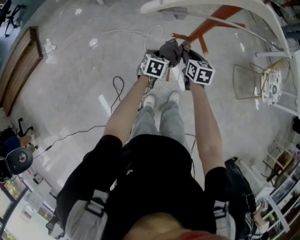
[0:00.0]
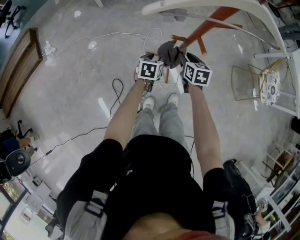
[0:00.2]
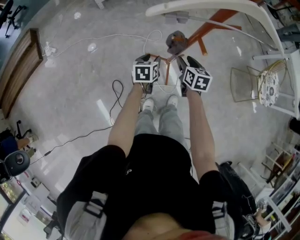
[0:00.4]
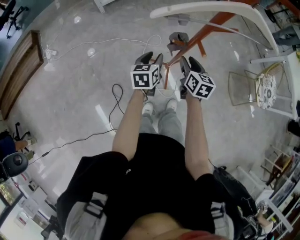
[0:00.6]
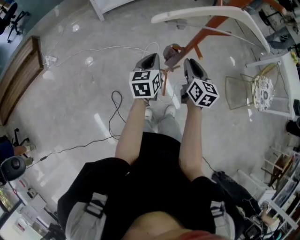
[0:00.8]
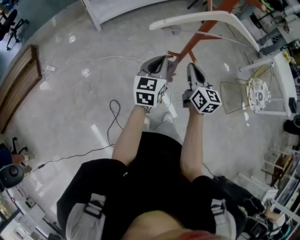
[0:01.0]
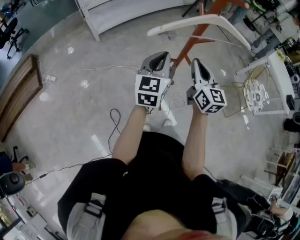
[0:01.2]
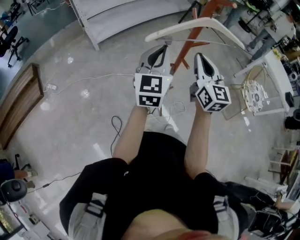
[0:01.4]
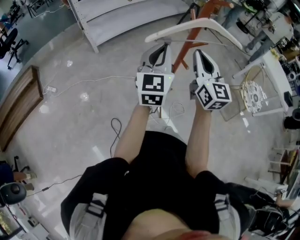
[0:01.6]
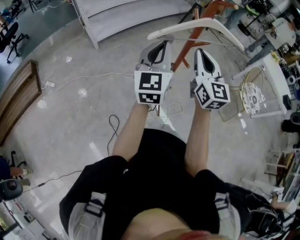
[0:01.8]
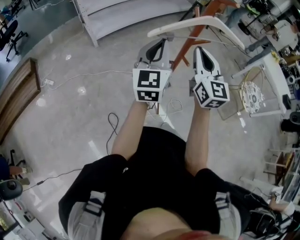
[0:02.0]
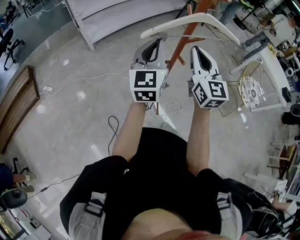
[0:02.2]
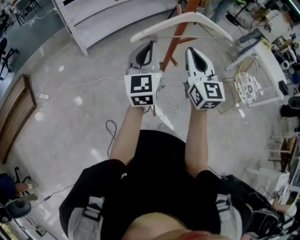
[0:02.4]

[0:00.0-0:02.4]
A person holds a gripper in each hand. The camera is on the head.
0:00.0 to 0:01.2: Both grippers move upward, approximately 30 cm. The left gripper tips its fingers upward by some 50 degrees, and closes up. Meanwhile the right gripper tilts its fingers some 40 degrees upward, and opens and closes again.
0:01.2 to 0:02.4: The grippers both shift upward by approximately 10 cm.

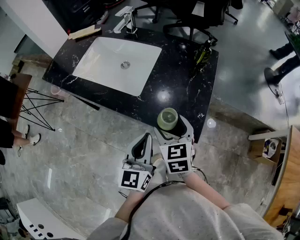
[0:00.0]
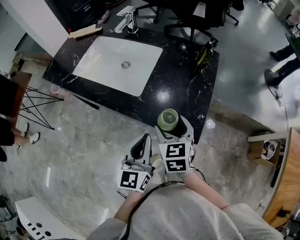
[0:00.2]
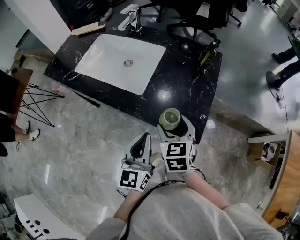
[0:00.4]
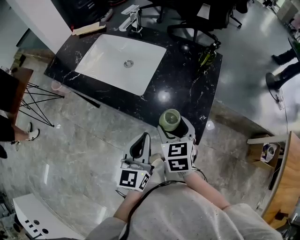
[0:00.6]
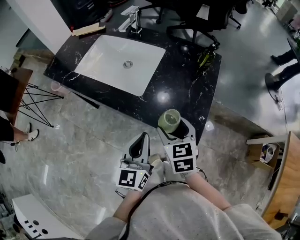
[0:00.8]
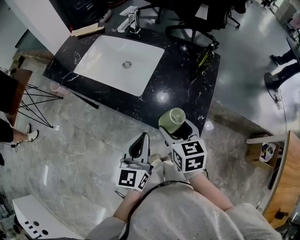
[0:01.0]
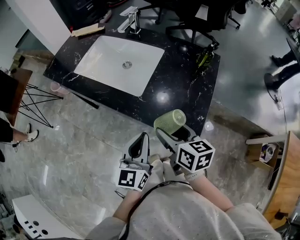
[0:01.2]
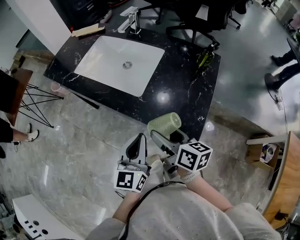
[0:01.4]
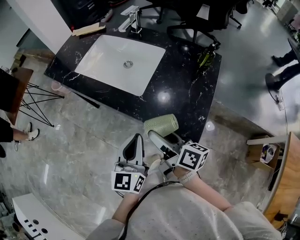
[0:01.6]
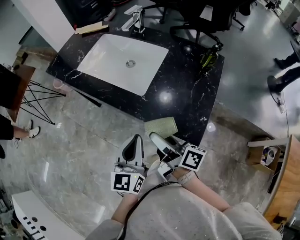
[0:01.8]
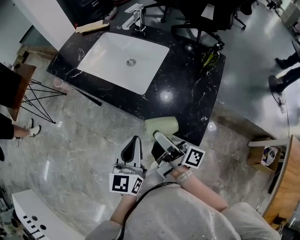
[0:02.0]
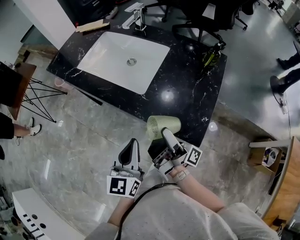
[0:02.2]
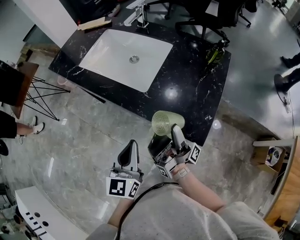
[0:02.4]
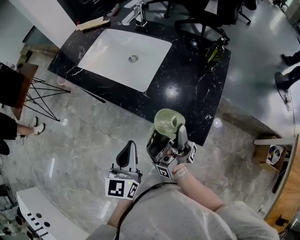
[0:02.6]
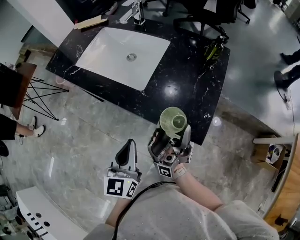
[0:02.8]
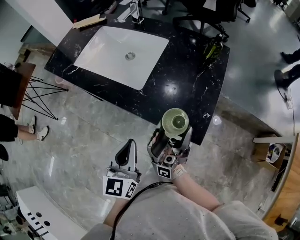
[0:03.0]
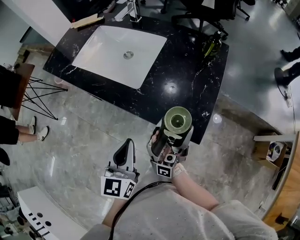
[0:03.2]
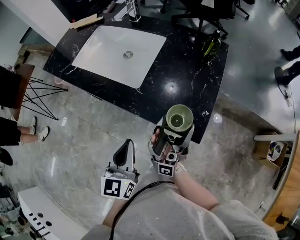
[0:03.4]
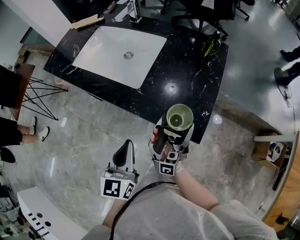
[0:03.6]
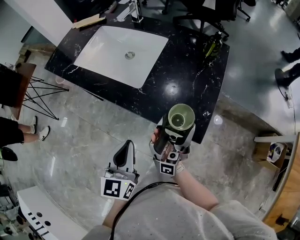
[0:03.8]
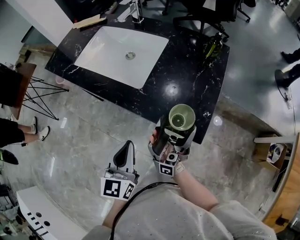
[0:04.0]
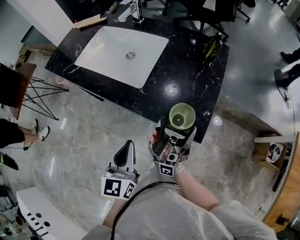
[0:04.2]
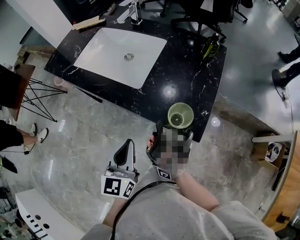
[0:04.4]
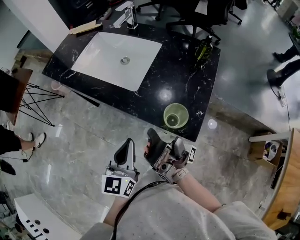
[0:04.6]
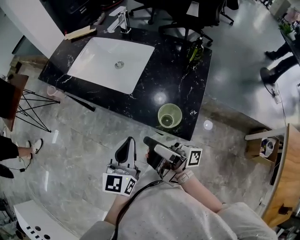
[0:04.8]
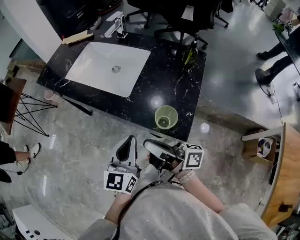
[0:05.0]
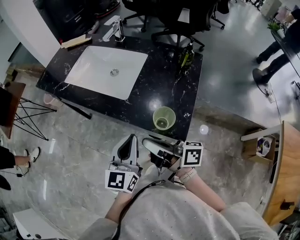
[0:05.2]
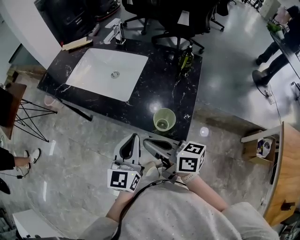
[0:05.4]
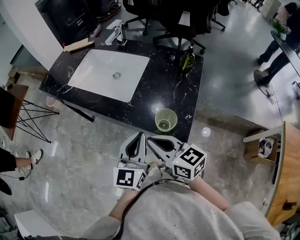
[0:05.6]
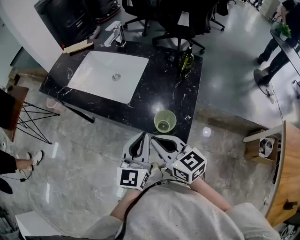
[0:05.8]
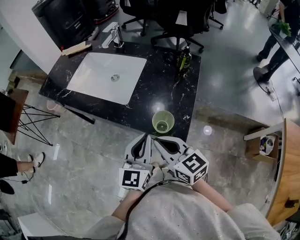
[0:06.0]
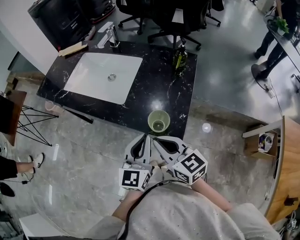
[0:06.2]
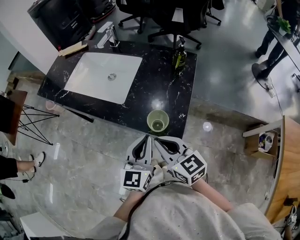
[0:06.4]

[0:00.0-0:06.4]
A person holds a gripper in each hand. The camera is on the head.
0:04.8 to 0:06.4: The left gripper shifts by approximately 10 cm.

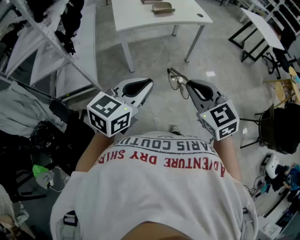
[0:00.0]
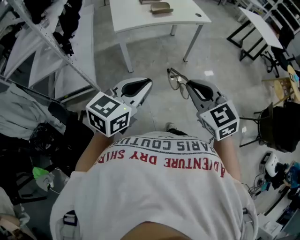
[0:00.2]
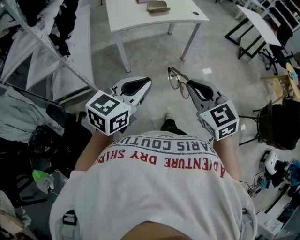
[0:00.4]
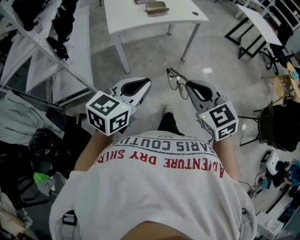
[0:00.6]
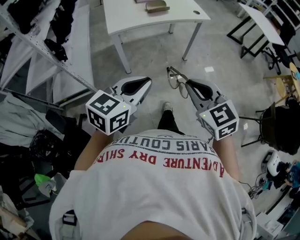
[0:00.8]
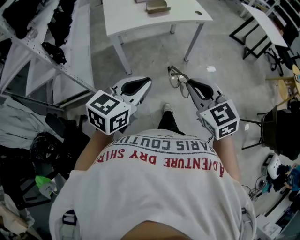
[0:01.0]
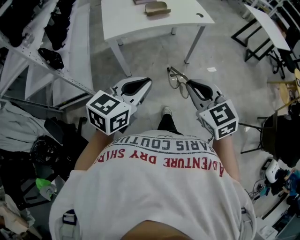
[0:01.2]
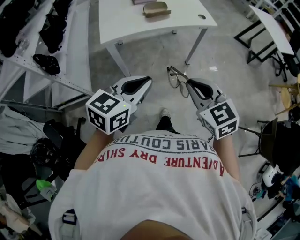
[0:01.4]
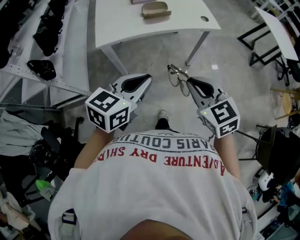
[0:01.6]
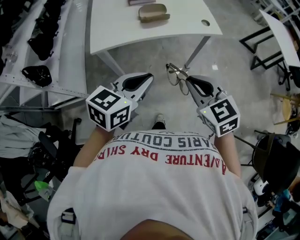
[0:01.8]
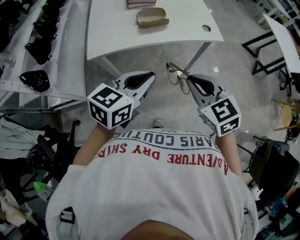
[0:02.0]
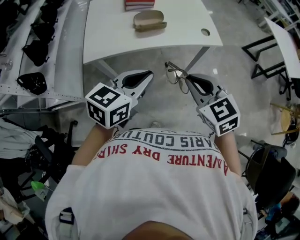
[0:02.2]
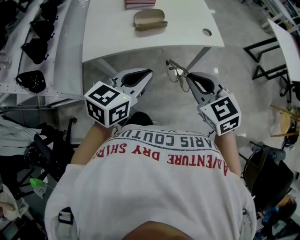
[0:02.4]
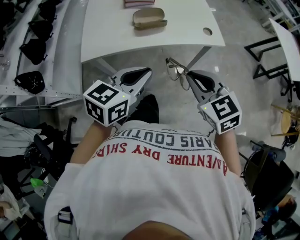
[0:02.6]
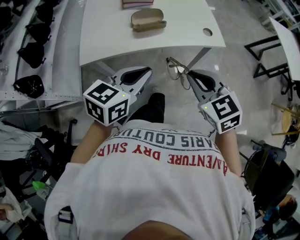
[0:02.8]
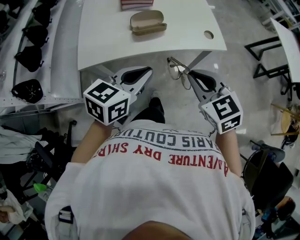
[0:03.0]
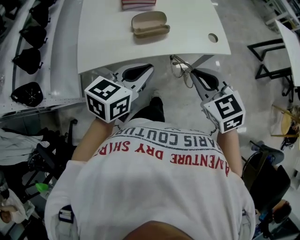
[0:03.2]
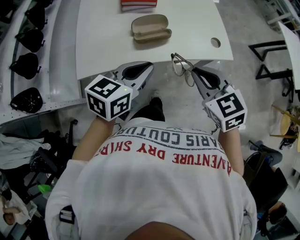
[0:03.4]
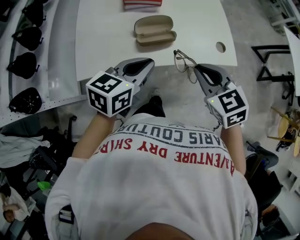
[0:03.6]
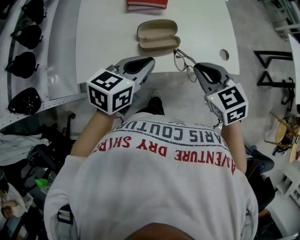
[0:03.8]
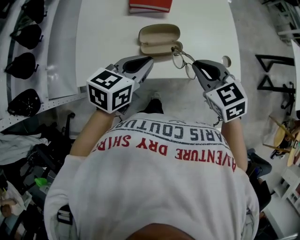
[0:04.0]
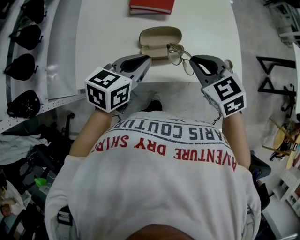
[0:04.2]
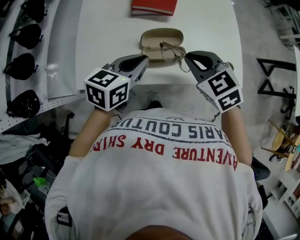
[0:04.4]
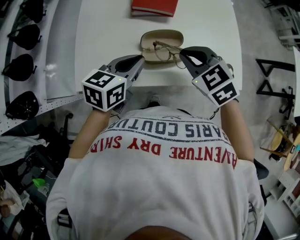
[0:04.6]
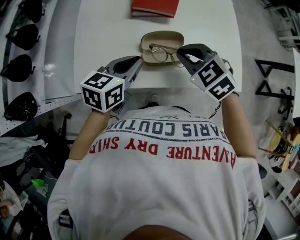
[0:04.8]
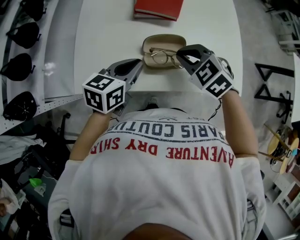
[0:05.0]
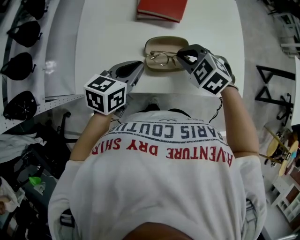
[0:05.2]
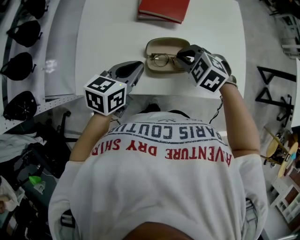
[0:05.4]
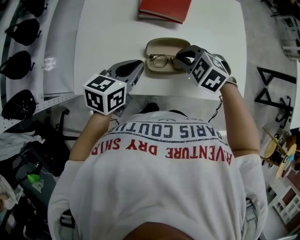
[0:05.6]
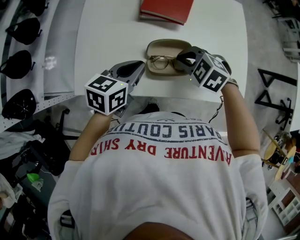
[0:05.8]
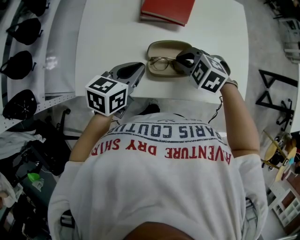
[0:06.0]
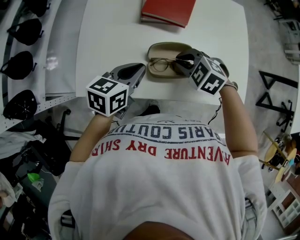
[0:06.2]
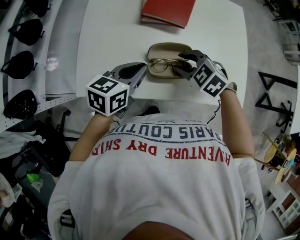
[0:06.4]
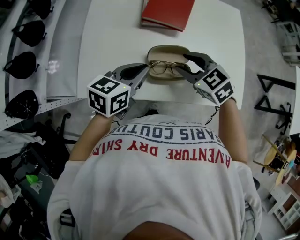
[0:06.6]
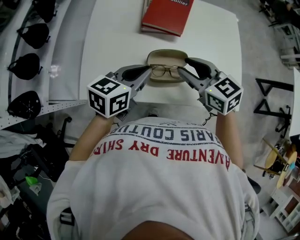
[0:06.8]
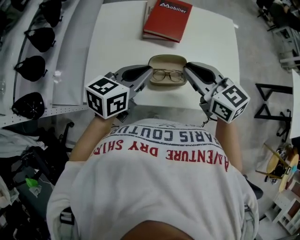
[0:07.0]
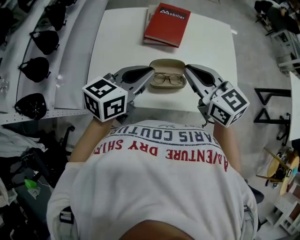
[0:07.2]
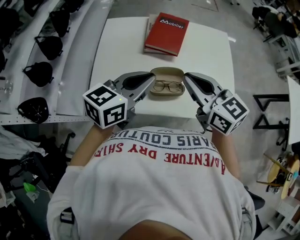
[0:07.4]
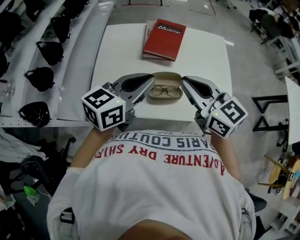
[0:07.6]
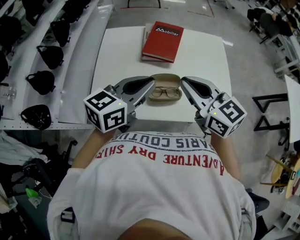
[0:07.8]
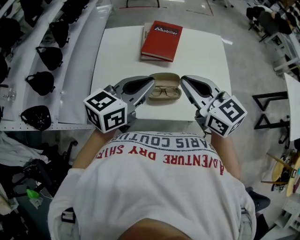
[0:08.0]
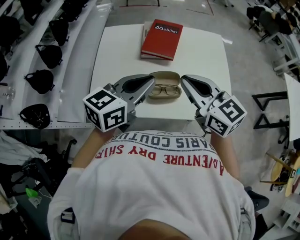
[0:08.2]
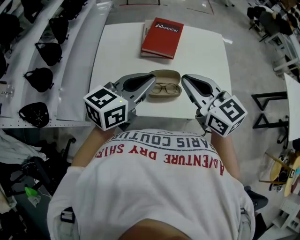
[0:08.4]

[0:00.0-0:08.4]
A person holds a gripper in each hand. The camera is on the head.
0:00.0 to 0:01.4: Both grippers travel together forward, roughly 20 cm.
0:01.4 to 0:02.8: Both grippers move forward, approximately 25 cm.
0:02.8 to 0:04.2: The two grippers go approximately 25 cm forward.
0:04.2 to 0:05.6: The right gripper heads downward, forward and to the left, covering about 15 cm, and rotates about 40 degrees. Meanwhile the left gripper shifts by some 10 cm.
0:05.6 to 0:07.0: The right gripper moves upward, approximately 15 cm, points its fingers roughly 40 degrees further upward, and opens, then closes again, while the left gripper heads upward, covering roughly 10 cm.
0:07.0 to 0:08.4: The two grippers go roughly 10 cm upward.

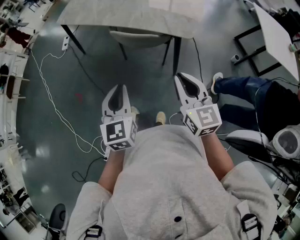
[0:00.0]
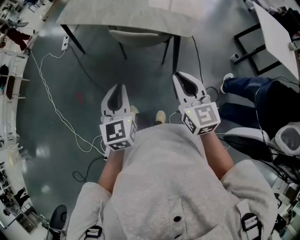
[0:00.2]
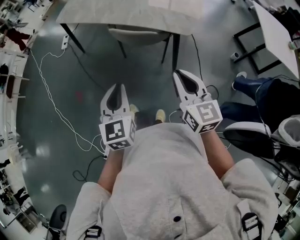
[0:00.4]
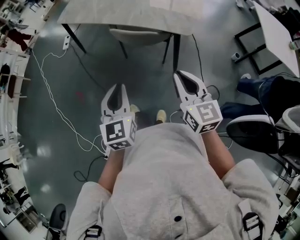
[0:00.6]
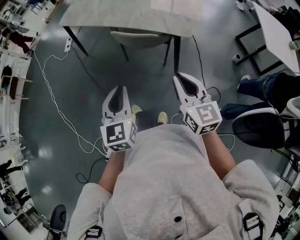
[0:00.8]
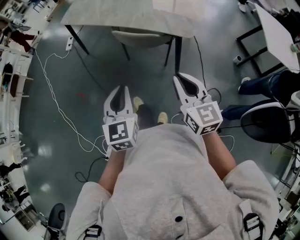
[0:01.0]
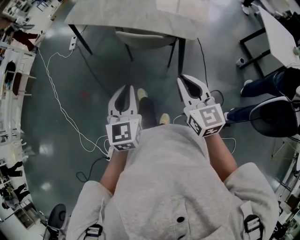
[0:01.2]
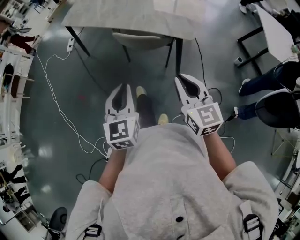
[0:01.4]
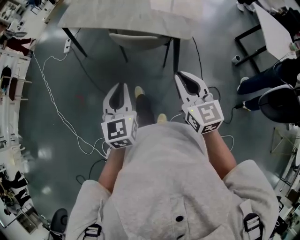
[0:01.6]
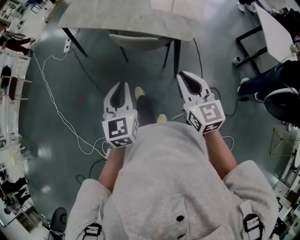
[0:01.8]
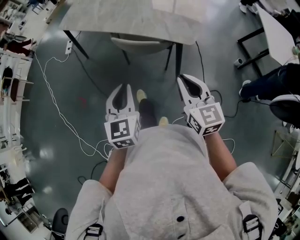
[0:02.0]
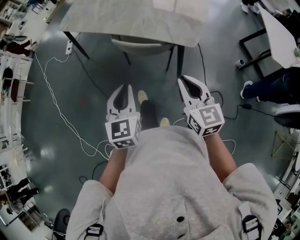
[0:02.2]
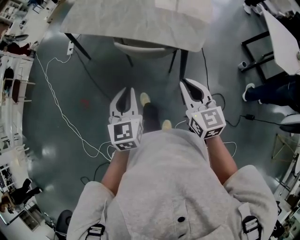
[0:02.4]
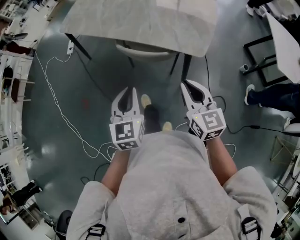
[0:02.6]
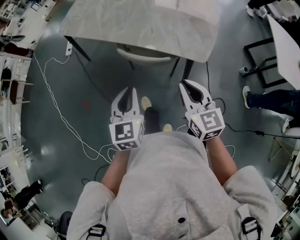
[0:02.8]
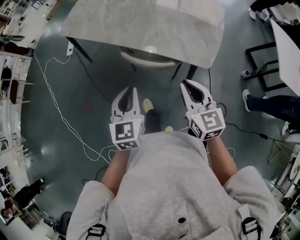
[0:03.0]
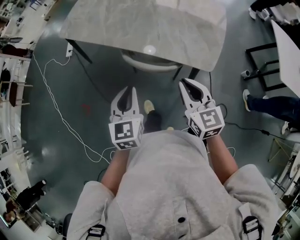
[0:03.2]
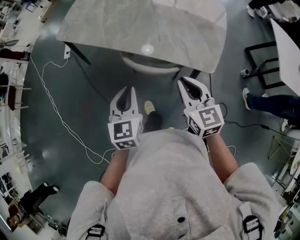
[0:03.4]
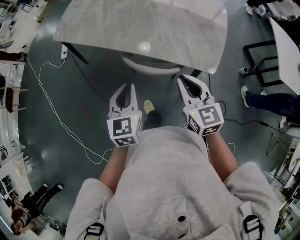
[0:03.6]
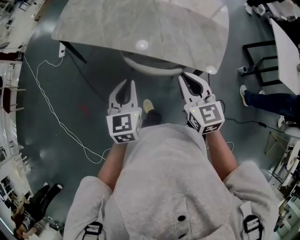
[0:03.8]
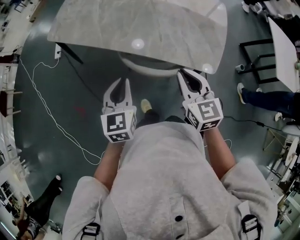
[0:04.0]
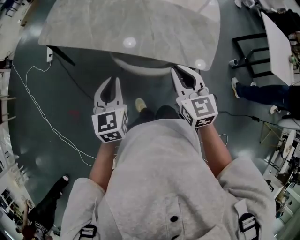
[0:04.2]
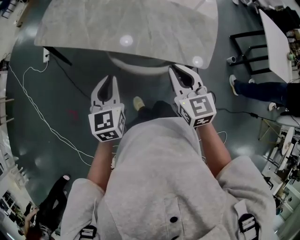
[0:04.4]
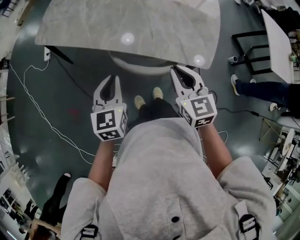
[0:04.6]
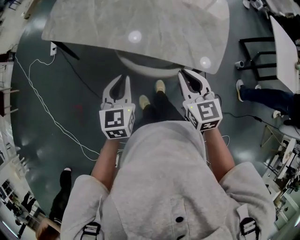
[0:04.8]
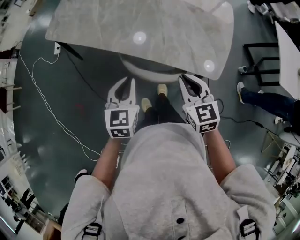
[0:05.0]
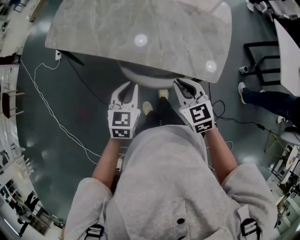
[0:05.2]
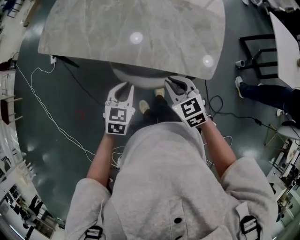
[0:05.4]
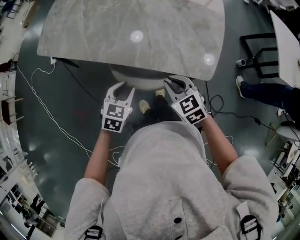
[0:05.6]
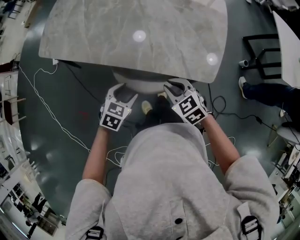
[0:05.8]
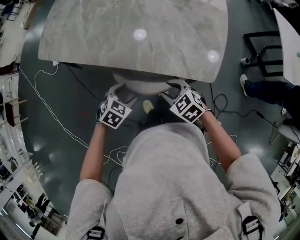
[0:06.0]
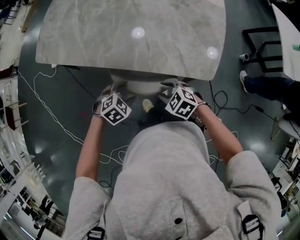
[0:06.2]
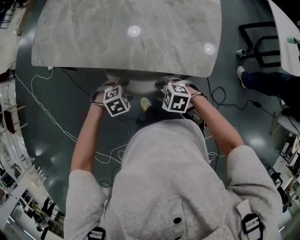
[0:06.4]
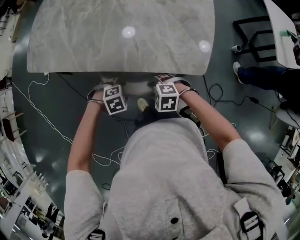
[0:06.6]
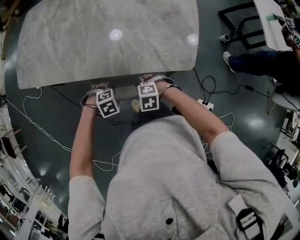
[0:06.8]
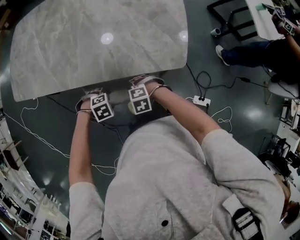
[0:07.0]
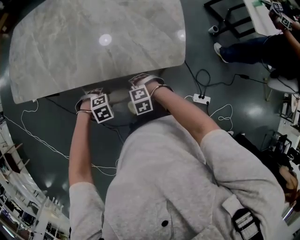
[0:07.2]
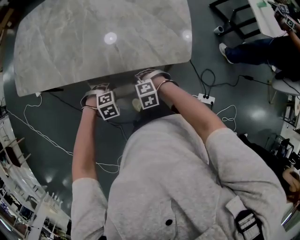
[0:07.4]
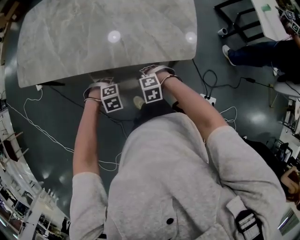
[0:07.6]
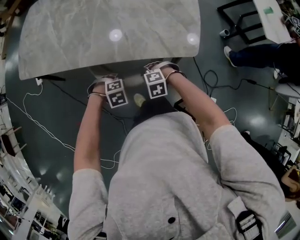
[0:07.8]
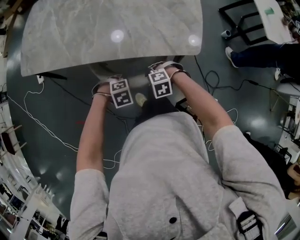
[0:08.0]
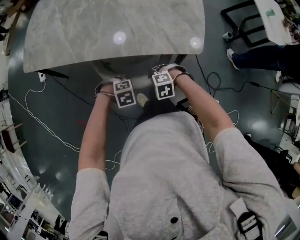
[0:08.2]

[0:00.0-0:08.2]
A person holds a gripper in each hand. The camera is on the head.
0:00.0 to 0:01.6: The grippers stay close to where they were, moving slightly.
0:01.6 to 0:03.2: The two grippers go about 25 cm forward.
0:03.2 to 0:05.0: Both grippers move forward and downward, about 15 cm.
0:05.0 to 0:06.6: The two grippers go approximately 20 cm downward. The right gripper tips its fingers downward by about 30 degrees, and opens up. The left gripper angles its fingers downward, by roughly 50 degrees, and opens up.
0:06.6 to 0:08.2: The right gripper moves roughly 5 cm, and closes up. The left gripper changes place by roughly 5 cm, and closes up.
